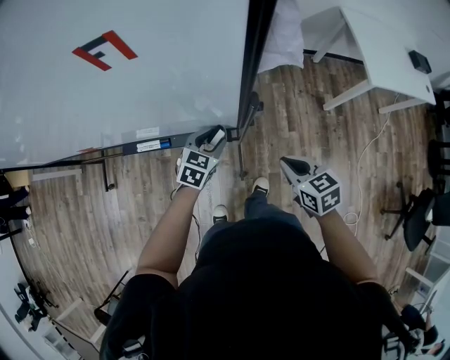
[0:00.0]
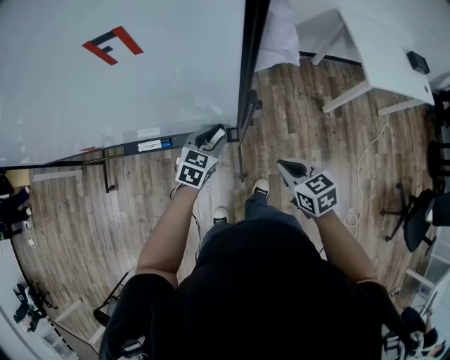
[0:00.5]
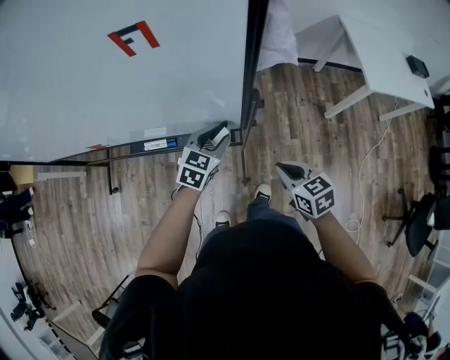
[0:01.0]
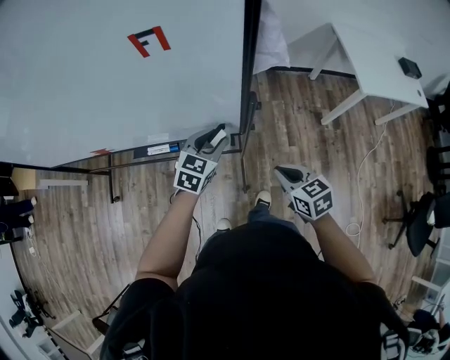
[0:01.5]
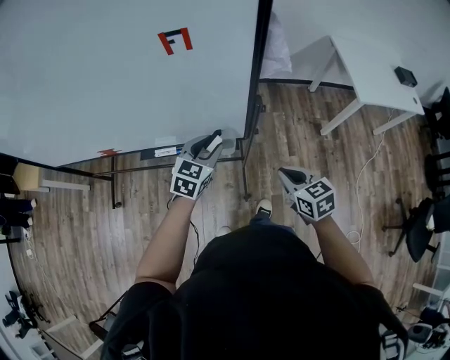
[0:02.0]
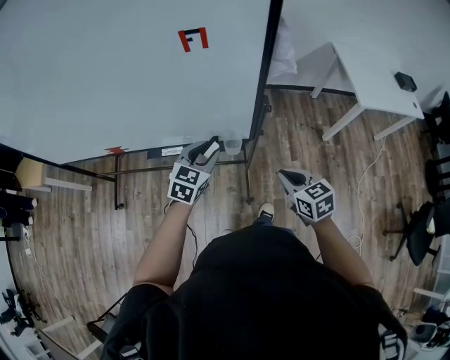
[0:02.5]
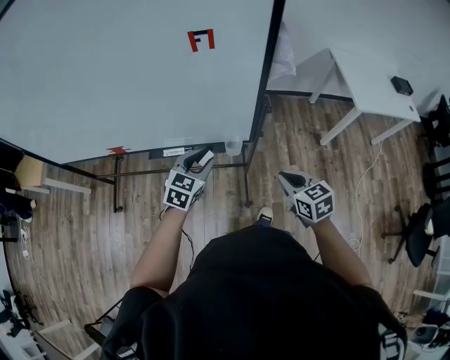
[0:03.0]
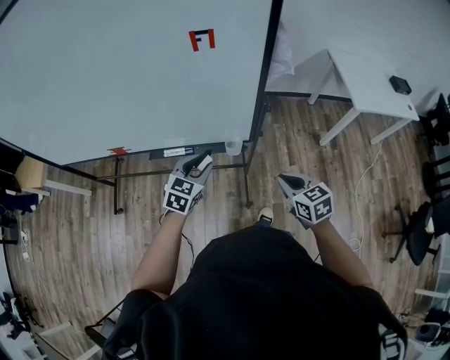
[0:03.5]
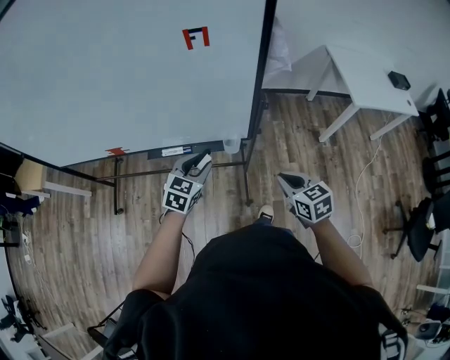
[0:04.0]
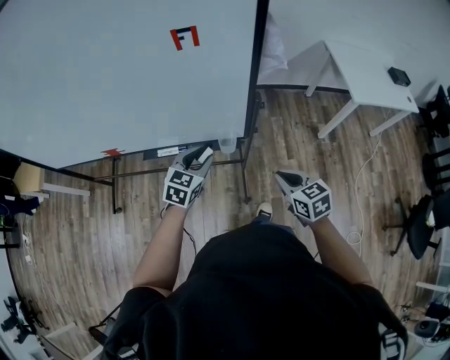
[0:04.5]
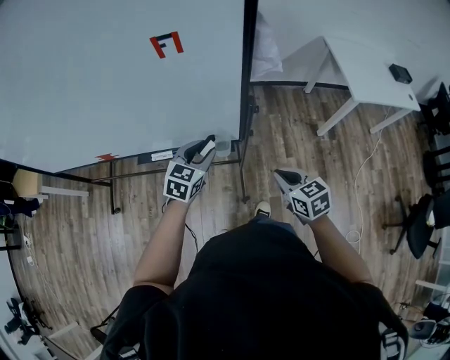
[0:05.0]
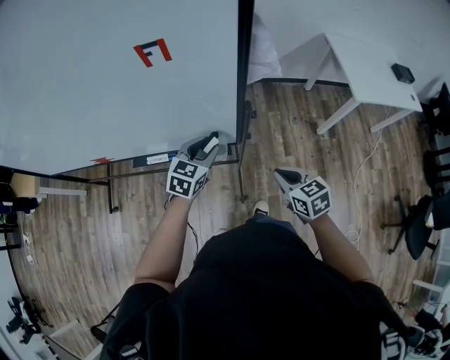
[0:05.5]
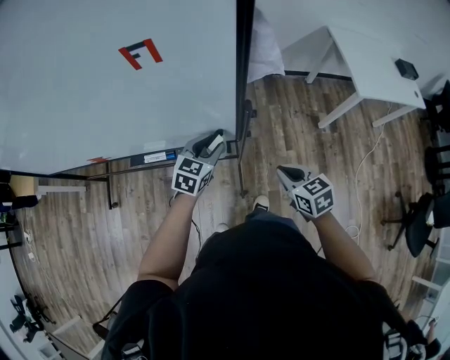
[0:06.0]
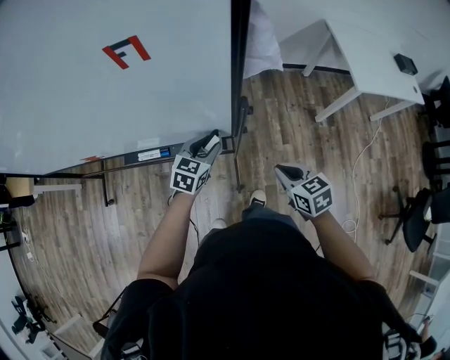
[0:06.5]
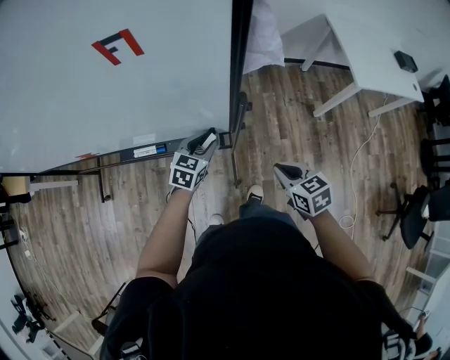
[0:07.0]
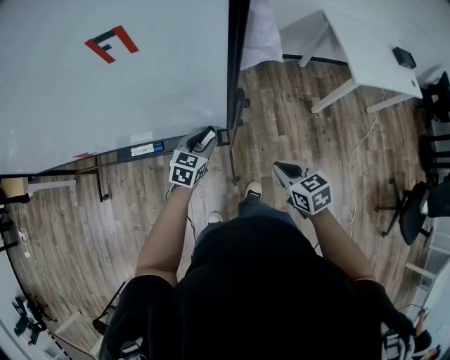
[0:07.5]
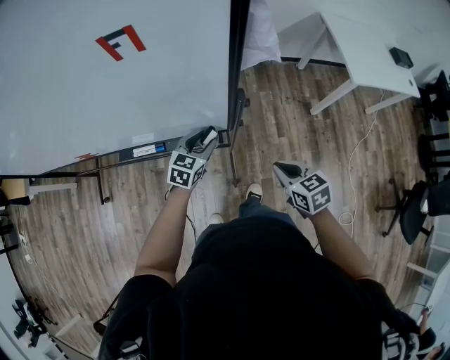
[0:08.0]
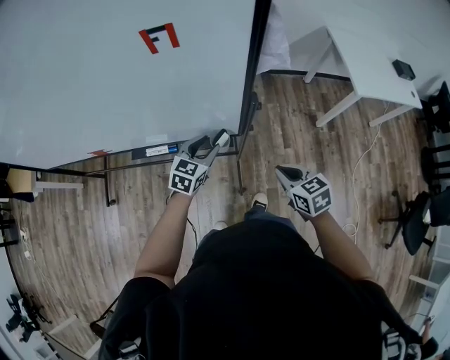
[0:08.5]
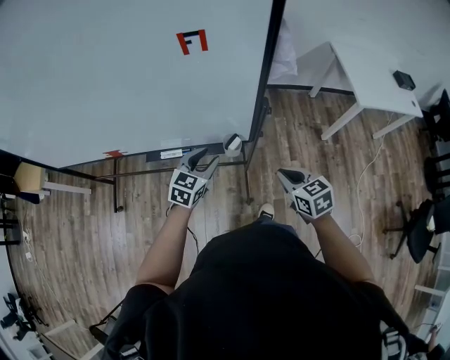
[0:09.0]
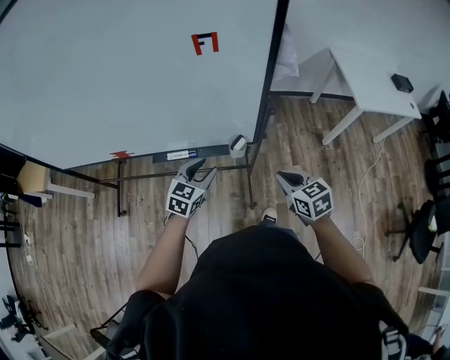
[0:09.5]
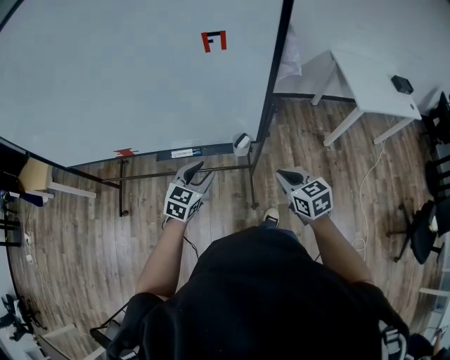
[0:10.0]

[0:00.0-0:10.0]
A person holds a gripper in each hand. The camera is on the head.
0:00.0 to 0:02.0: The right gripper heads backward and upward, covering roughly 10 cm; the left gripper heads upward, covering about 15 cm.
0:02.0 to 0:04.0: The right gripper moves roughly 5 cm; the left gripper heads backward and to the left, covering some 10 cm.
0:04.0 to 0:06.0: The right gripper heads forward and to the right, covering approximately 10 cm. Meanwhile the left gripper heads forward and to the right, covering about 15 cm.
0:06.0 to 0:08.0: The left gripper shifts approximately 5 cm downward.
0:08.0 to 0:10.0: The left gripper is displaced backward, to the left and upward by roughly 20 cm. The right gripper shifts approximately 15 cm to the left, upward and backward.

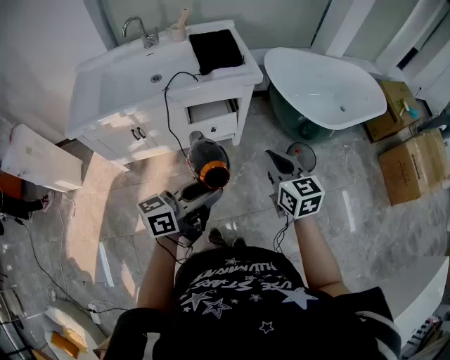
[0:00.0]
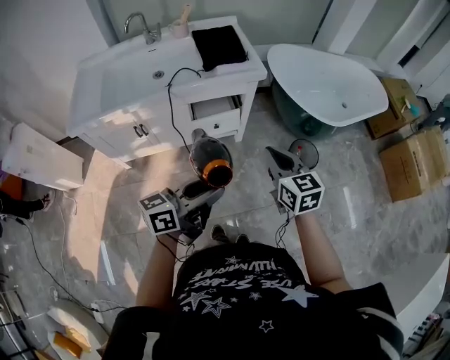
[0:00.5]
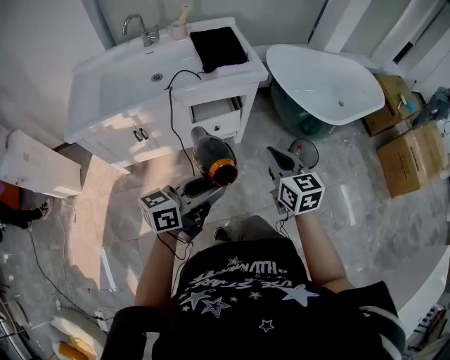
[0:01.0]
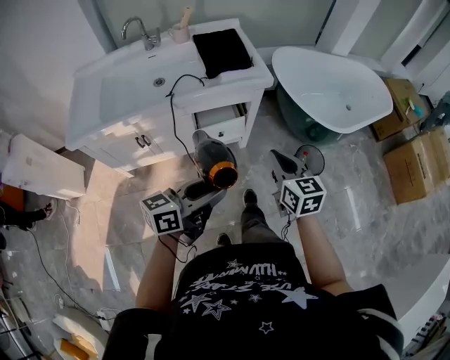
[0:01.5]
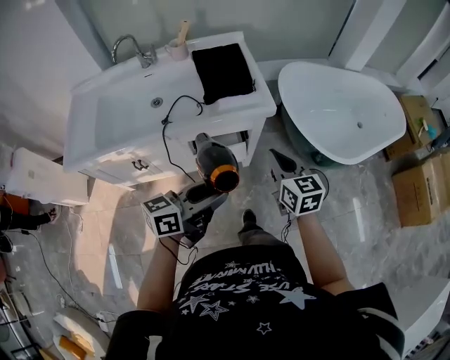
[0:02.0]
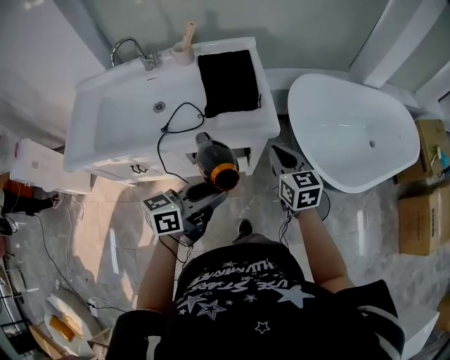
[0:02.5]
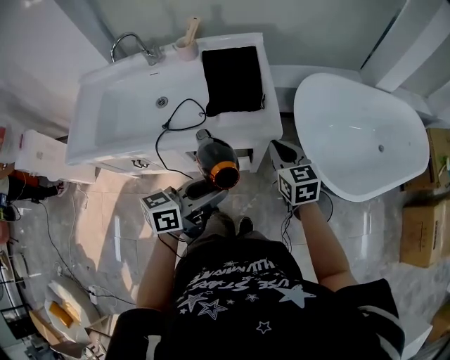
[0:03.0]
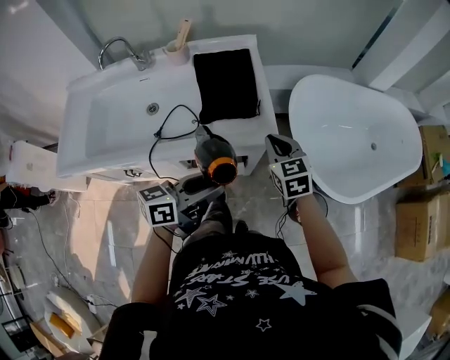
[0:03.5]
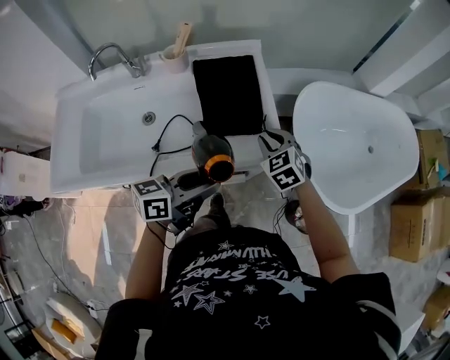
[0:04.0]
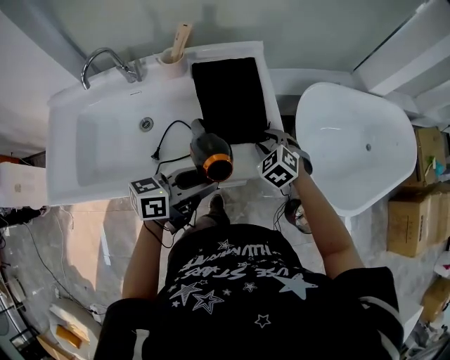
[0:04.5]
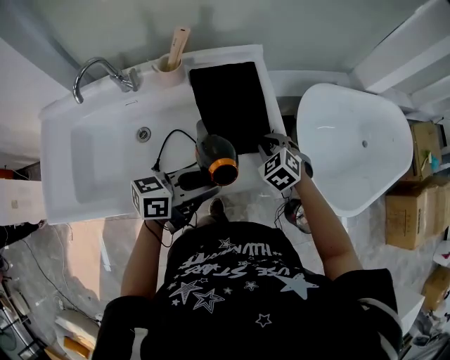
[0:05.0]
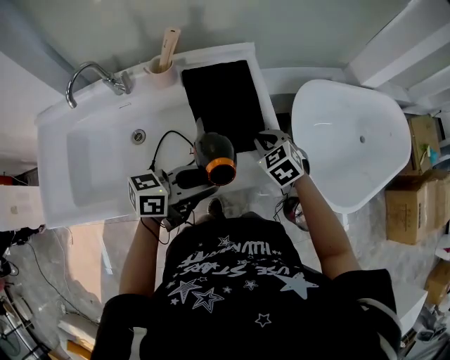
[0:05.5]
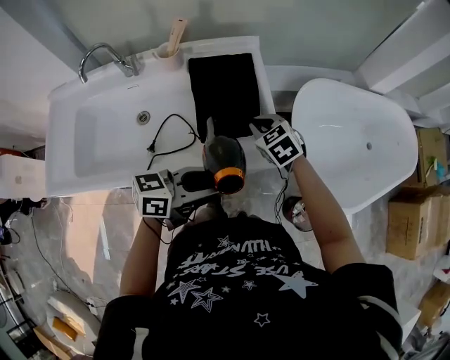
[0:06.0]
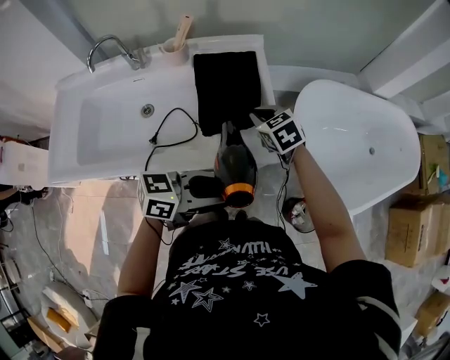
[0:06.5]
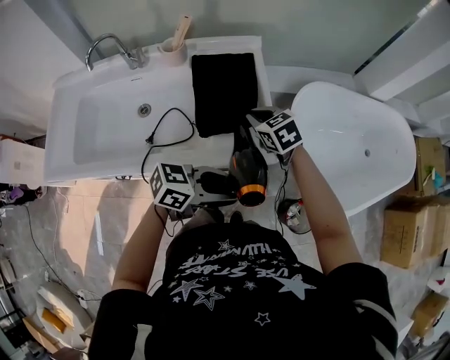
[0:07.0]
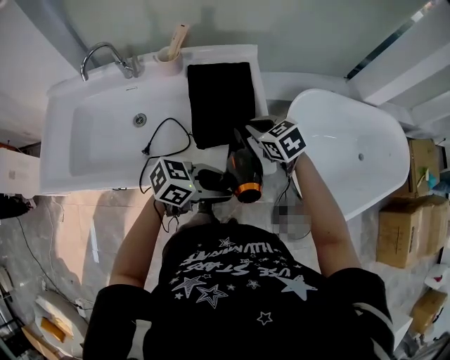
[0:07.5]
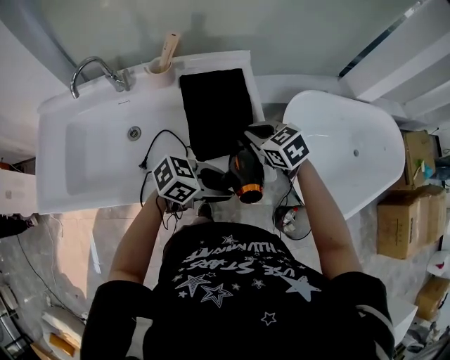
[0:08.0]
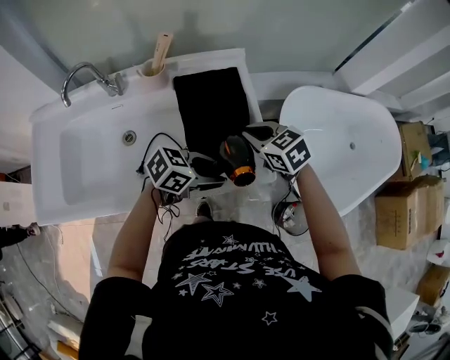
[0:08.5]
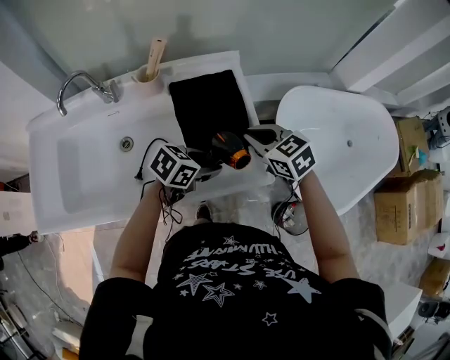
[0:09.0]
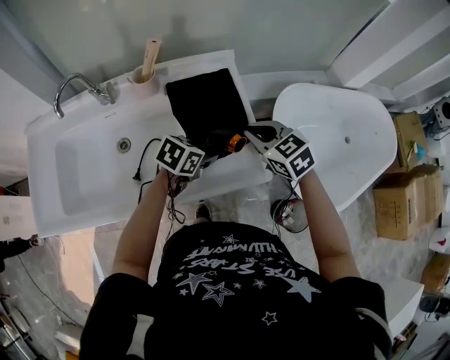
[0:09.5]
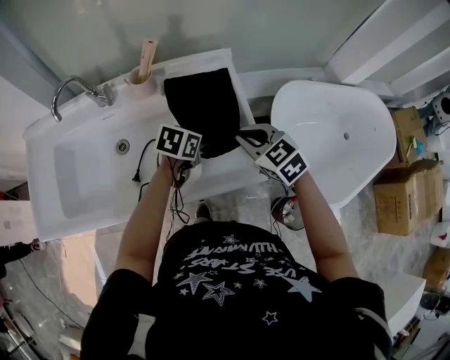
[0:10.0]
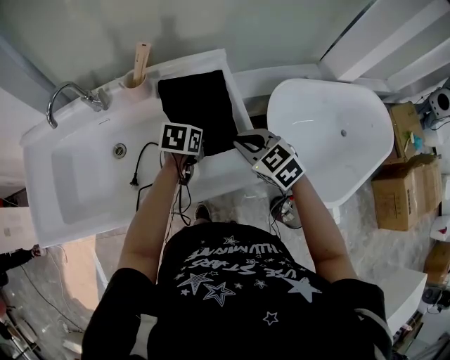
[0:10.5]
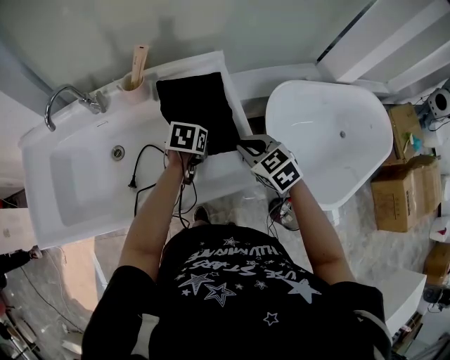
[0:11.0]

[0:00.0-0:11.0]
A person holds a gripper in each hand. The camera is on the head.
0:00.0 to 0:02.0: Both grippers travel together forward, roughly 20 cm.
0:02.0 to 0:03.5: The grippers both shift forward by about 20 cm.
0:03.5 to 0:05.5: The right gripper travels forward, to the left and downward by about 15 cm, changes its angle by some 30 degrees, and opens, then closes again; the left gripper is displaced forward and to the left by some 15 cm.
0:05.5 to 0:07.5: The left gripper moves roughly 10 cm, and swivels about 20 degrees.
0:07.5 to 0:09.0: The left gripper moves approximately 15 cm.
0:09.0 to 0:11.0: The left gripper goes about 10 cm forward, and changes its angle by roughly 30 degrees.

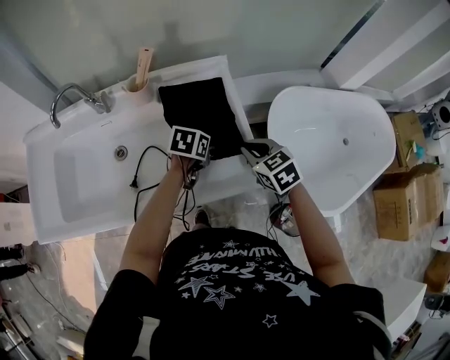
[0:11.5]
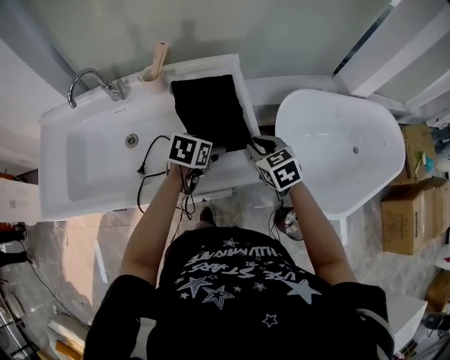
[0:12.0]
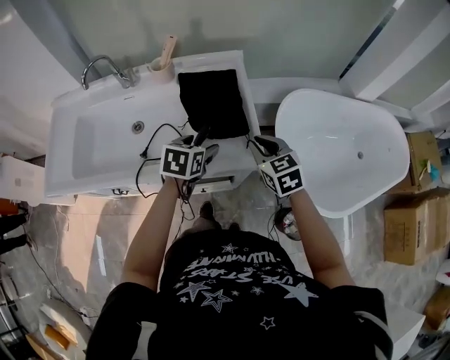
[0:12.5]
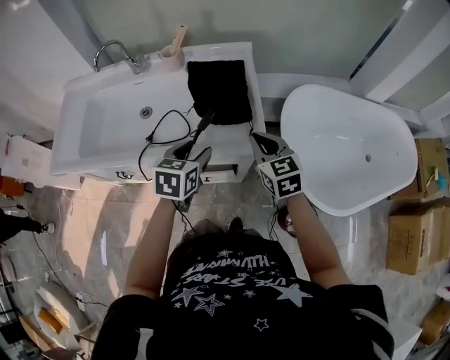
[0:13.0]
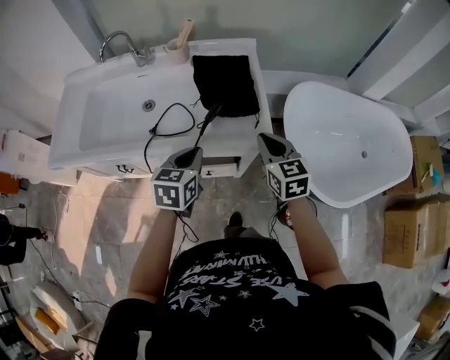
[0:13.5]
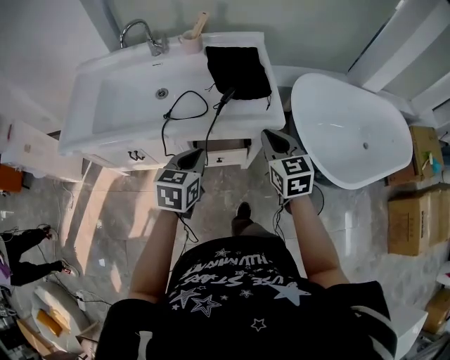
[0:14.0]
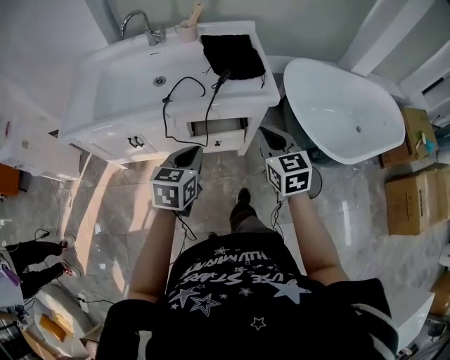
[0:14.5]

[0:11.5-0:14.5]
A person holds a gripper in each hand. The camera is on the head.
0:11.5 to 0:13.0: The left gripper goes approximately 20 cm backward and upward, and swivels some 30 degrees. Meanwhile the right gripper travels backward by approximately 10 cm.
0:13.0 to 0:14.5: The right gripper travels backward by some 20 cm; the left gripper goes about 25 cm backward and to the left, and closes up.

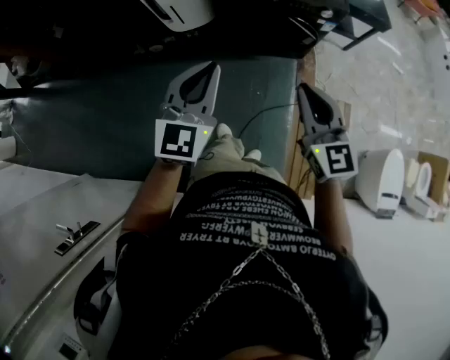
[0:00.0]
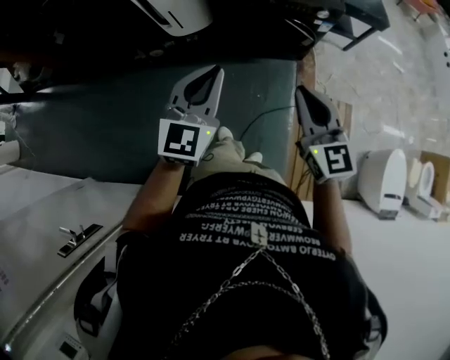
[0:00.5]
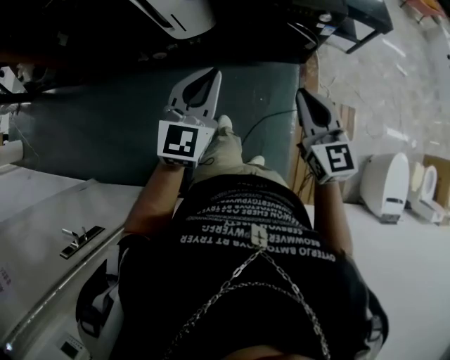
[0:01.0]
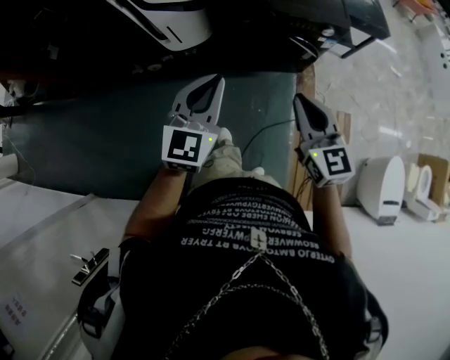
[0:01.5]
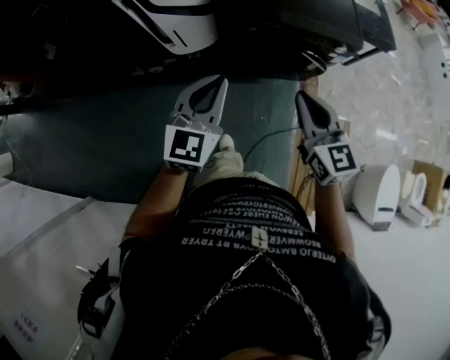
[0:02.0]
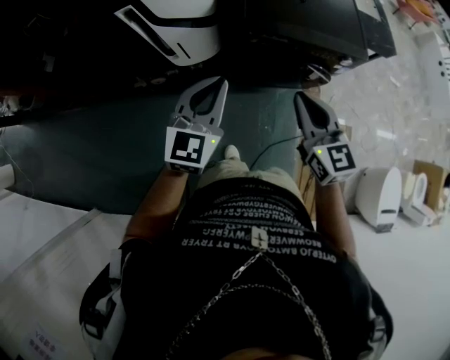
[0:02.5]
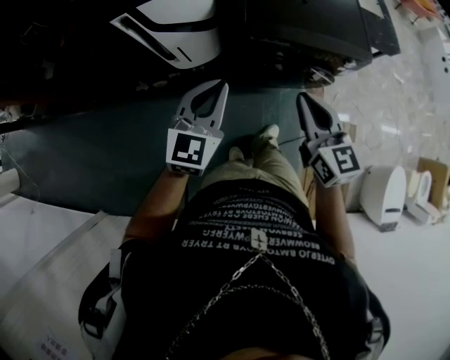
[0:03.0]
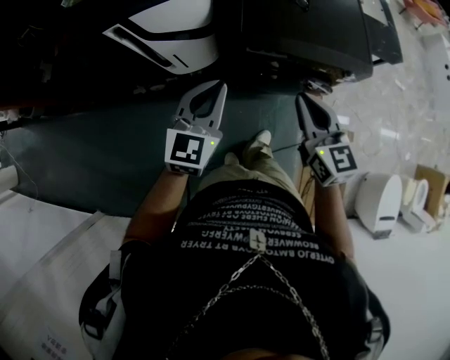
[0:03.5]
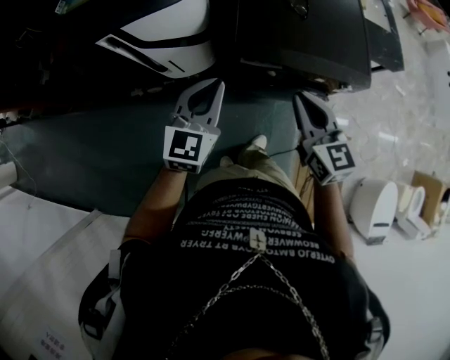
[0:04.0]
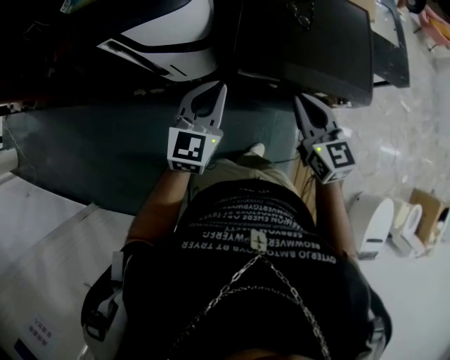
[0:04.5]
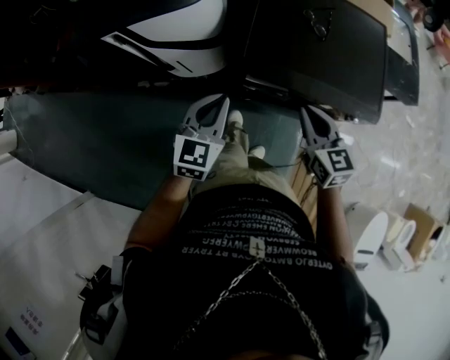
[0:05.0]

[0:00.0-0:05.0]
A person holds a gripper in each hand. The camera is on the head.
0:00.0 to 0:02.5: Both grippers move forward and to the left, approximately 30 cm.
0:02.5 to 0:05.0: The right gripper heads forward, to the right and downward, covering about 25 cm. The left gripper heads forward and downward, covering about 20 cm.
